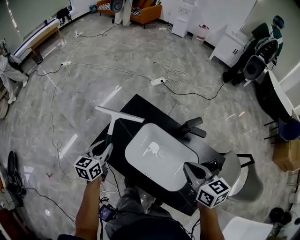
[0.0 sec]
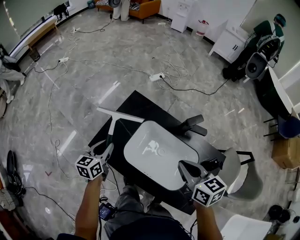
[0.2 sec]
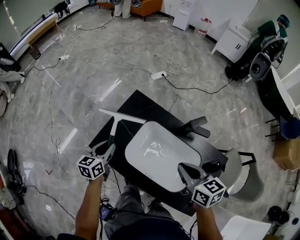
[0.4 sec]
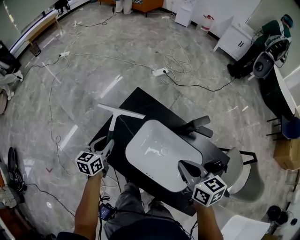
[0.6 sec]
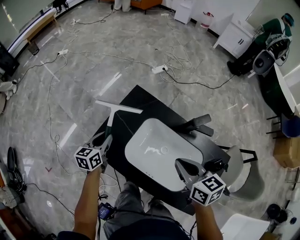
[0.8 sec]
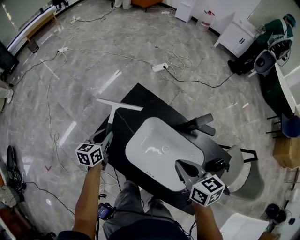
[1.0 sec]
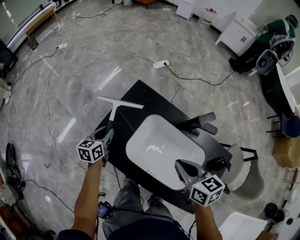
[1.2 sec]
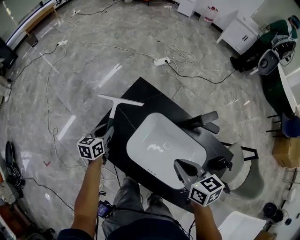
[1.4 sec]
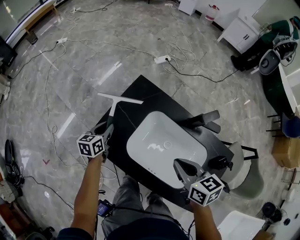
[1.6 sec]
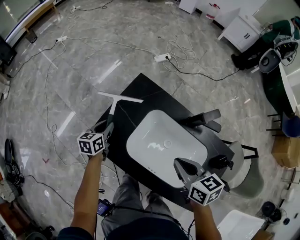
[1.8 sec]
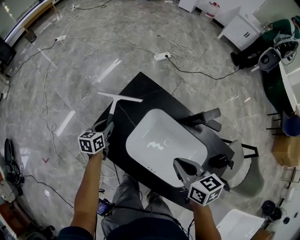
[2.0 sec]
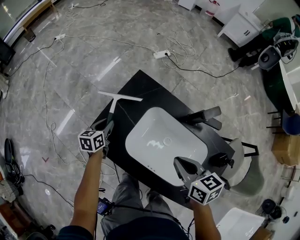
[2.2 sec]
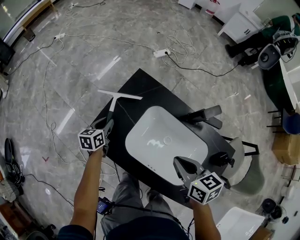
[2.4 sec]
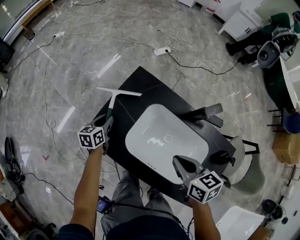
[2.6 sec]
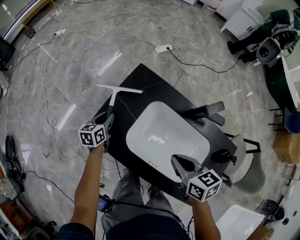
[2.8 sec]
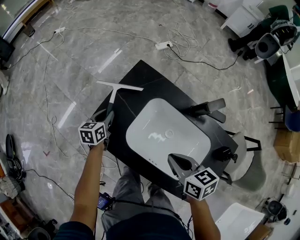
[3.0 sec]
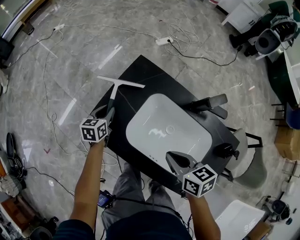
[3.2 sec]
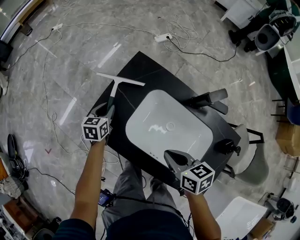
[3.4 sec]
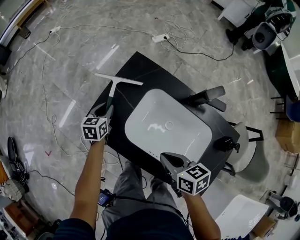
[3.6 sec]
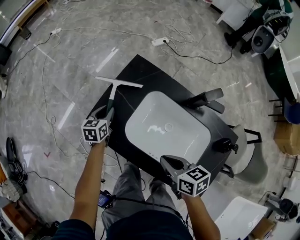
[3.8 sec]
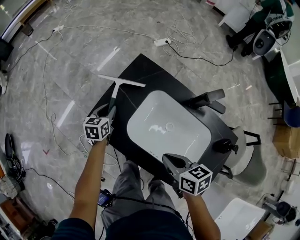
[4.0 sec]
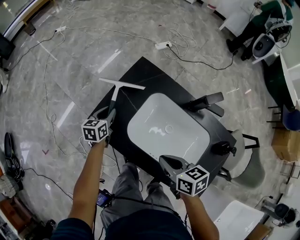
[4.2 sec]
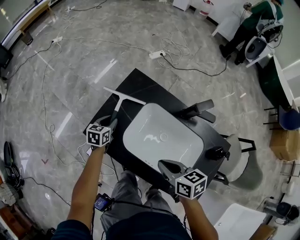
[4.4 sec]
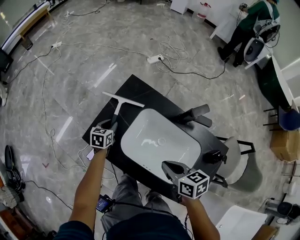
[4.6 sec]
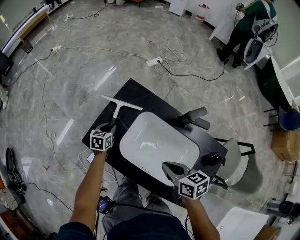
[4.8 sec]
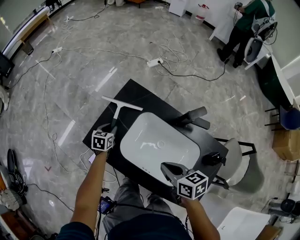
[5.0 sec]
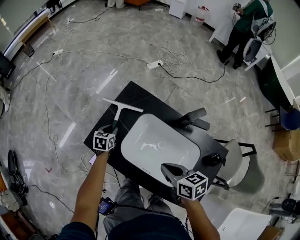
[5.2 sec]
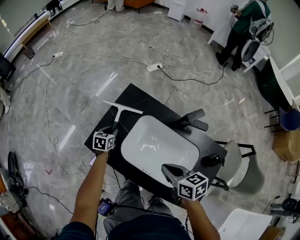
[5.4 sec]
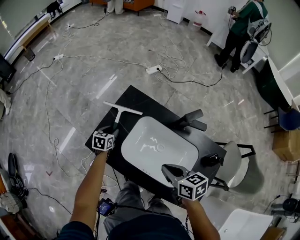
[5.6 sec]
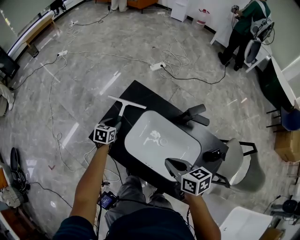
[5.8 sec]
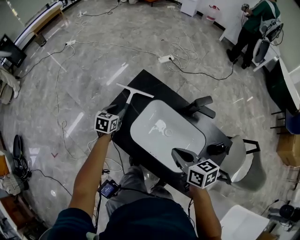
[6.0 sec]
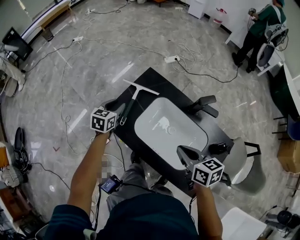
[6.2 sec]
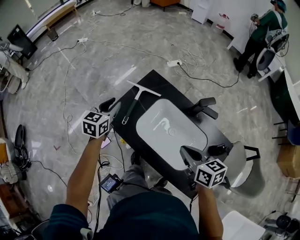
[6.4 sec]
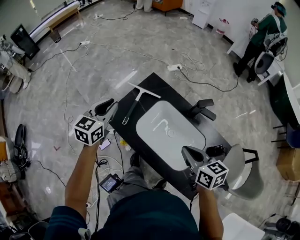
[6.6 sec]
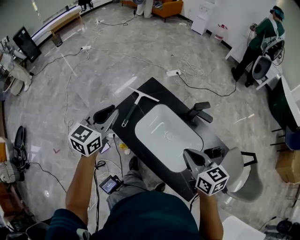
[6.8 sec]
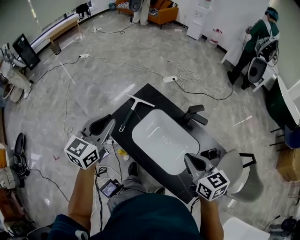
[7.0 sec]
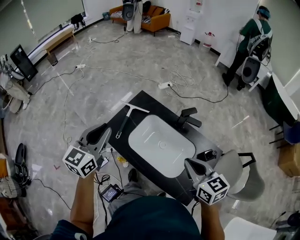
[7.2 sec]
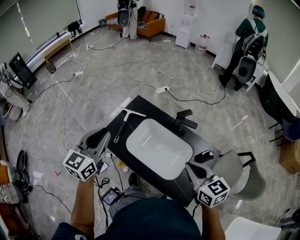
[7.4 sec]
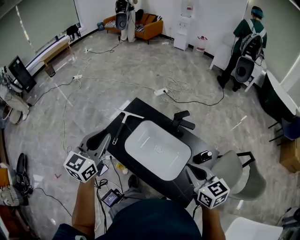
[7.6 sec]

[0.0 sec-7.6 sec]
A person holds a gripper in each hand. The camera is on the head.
0.0 sec to 1.6 sec: The right gripper moves downward and to the left, roughly 15 cm; the left gripper shifts some 20 cm downward and forward.
1.6 sec to 3.0 sec: The right gripper moves roughly 5 cm.
4.6 sec to 6.0 sec: Both grippers travel together upward, roughly 5 cm.
6.0 sec to 7.6 sec: The right gripper goes some 25 cm upward, backward and to the right, and turns by approximately 20 degrees. Meanwhile the left gripper moves upward and backward, approximately 40 cm, and tilts its fingers roughly 30 degrees upward.
